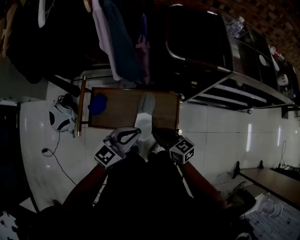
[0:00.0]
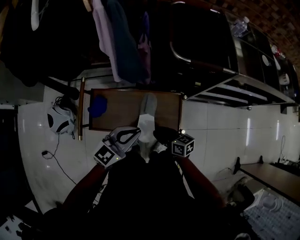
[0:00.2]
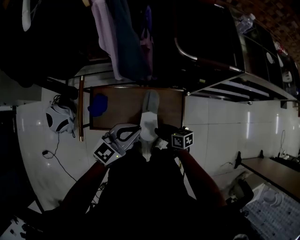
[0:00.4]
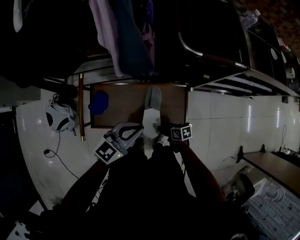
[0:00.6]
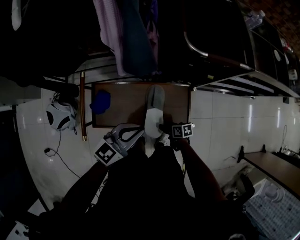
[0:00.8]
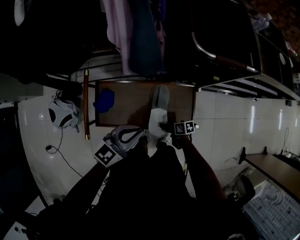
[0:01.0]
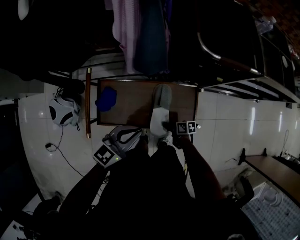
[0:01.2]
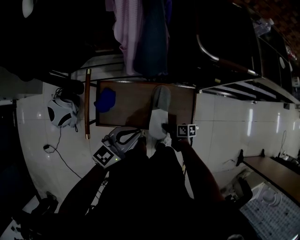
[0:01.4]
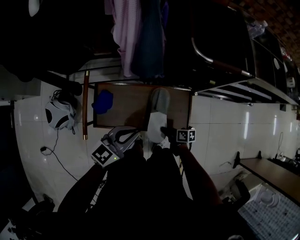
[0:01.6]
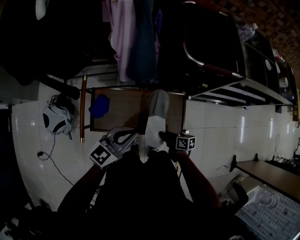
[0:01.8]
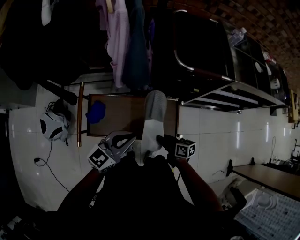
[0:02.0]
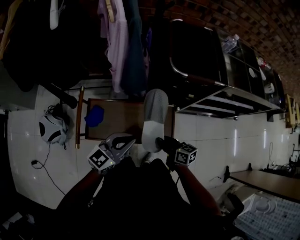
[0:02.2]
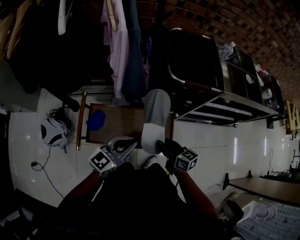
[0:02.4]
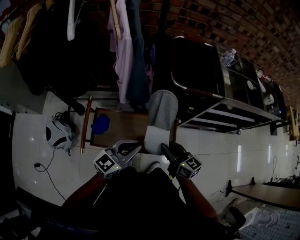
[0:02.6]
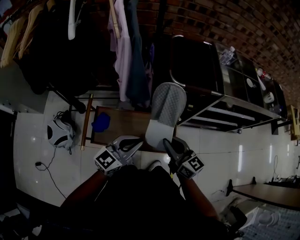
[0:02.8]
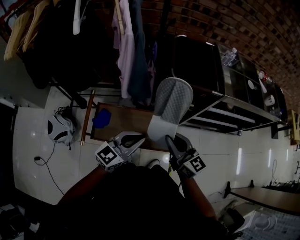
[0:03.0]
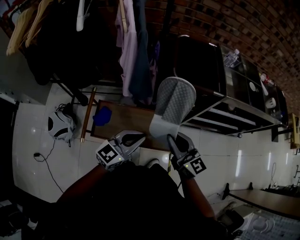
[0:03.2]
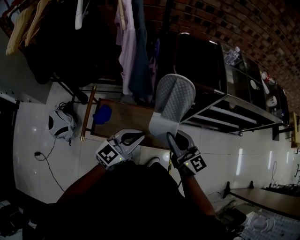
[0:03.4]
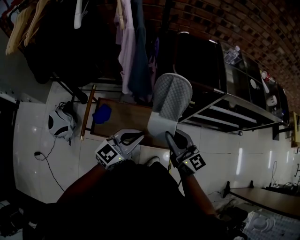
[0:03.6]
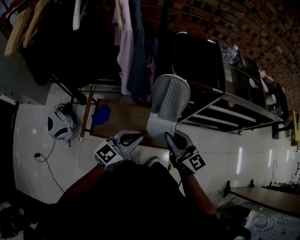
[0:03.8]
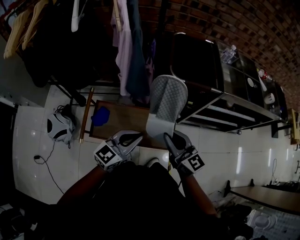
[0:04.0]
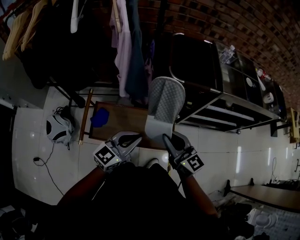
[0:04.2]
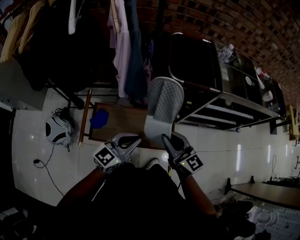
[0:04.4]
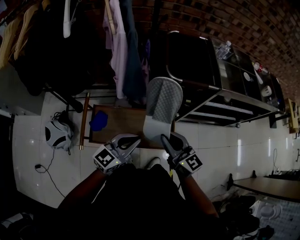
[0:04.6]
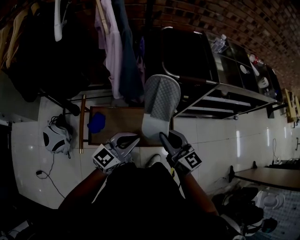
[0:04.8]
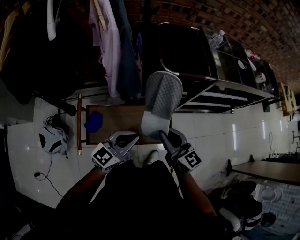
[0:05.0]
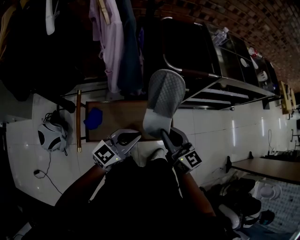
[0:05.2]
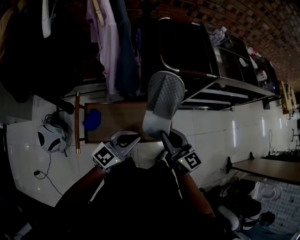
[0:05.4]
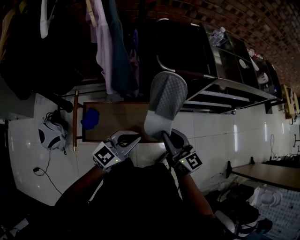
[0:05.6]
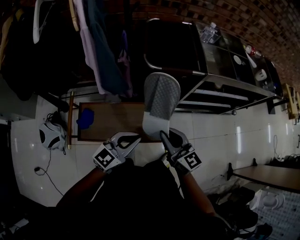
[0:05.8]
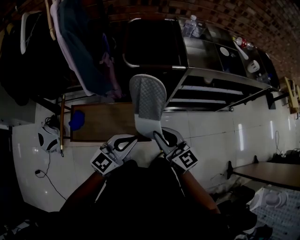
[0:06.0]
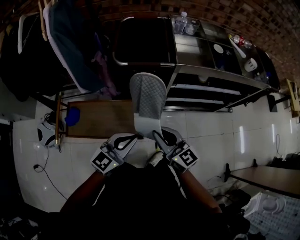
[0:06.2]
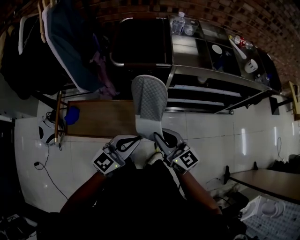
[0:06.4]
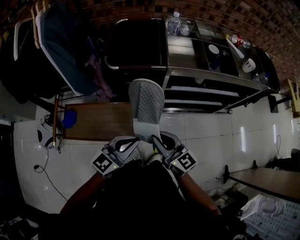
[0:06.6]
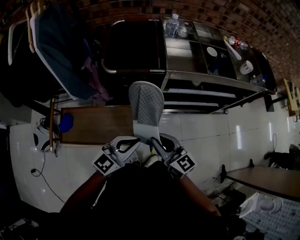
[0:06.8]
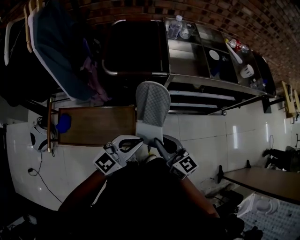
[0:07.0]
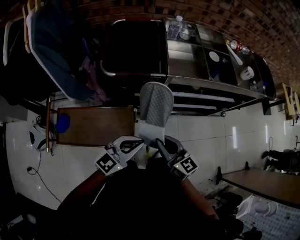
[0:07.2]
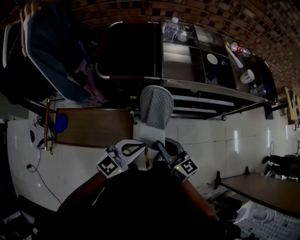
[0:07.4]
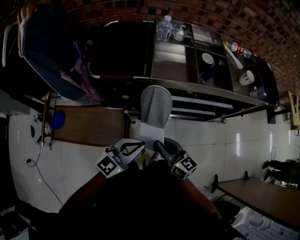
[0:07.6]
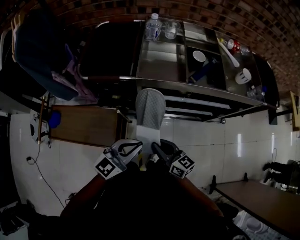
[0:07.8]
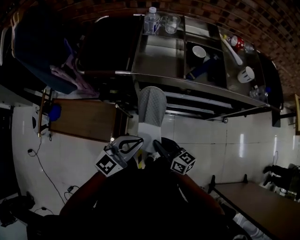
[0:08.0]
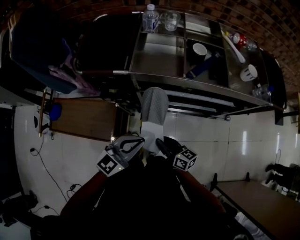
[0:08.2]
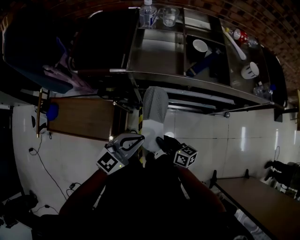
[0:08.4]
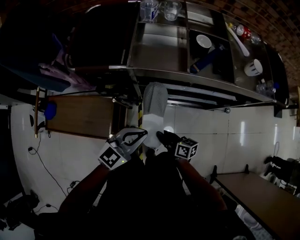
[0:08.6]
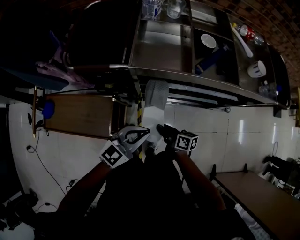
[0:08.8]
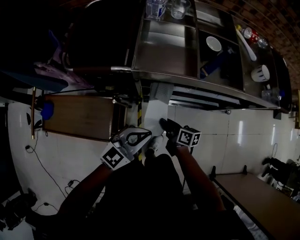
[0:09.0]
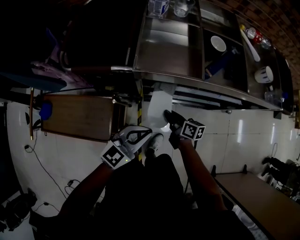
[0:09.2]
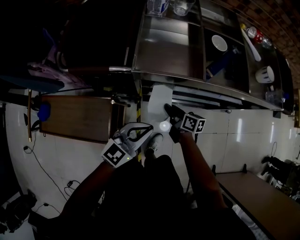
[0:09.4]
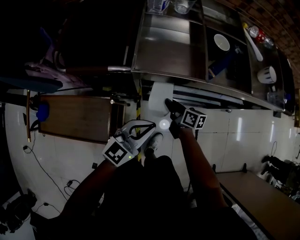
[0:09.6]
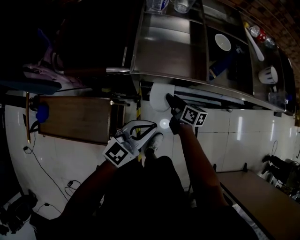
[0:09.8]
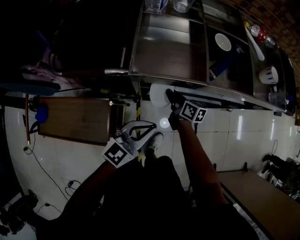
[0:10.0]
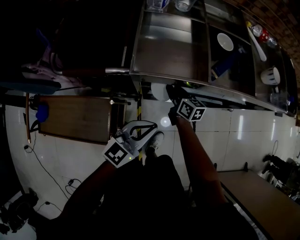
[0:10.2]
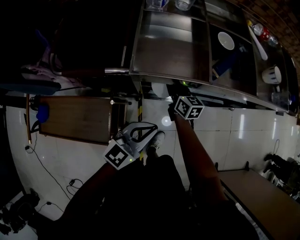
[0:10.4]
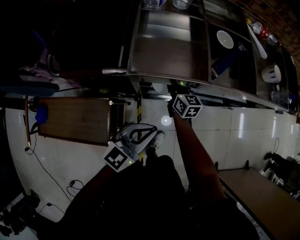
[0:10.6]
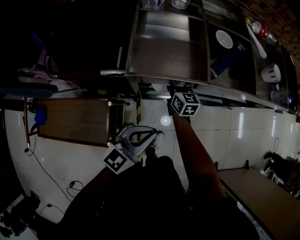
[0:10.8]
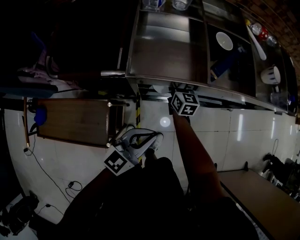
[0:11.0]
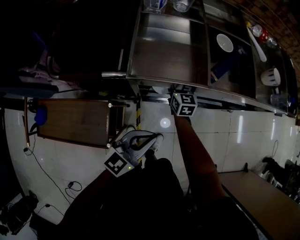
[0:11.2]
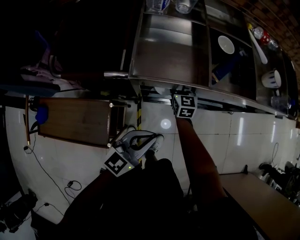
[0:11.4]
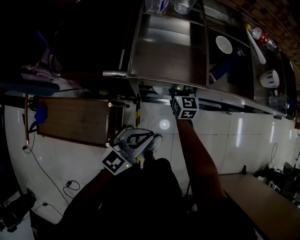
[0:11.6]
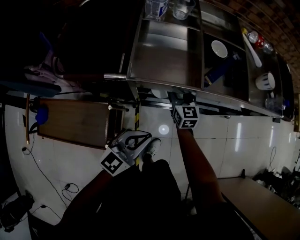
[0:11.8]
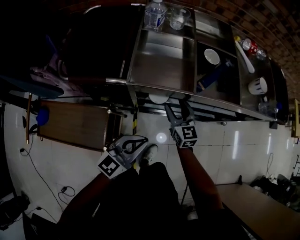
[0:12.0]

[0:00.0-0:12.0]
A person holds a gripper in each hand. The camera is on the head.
0:00.0 to 0:01.6: The right gripper travels downward by some 20 cm, rotates around the line of its fingers by some 40 degrees, clockwise from behind, and opens and closes again, while the left gripper shifts by roughly 10 cm.
0:01.6 to 0:03.0: The right gripper heads upward, covering approximately 40 cm, and tilts its fingers some 30 degrees upward. Meanwhile the left gripper goes some 15 cm upward and to the right.
0:03.0 to 0:04.4: The grippers make only small movements.
0:04.4 to 0:06.0: Both grippers move to the right, roughly 15 cm.
0:06.0 to 0:07.6: The two grippers go approximately 20 cm to the right.
0:07.6 to 0:09.0: The right gripper travels downward, forward and to the right by roughly 25 cm, and changes its angle by roughly 40 degrees; the left gripper travels to the right, downward and forward by about 15 cm.
0:09.0 to 0:10.4: The right gripper goes about 20 cm forward, and swivels roughly 30 degrees; the left gripper moves forward, about 5 cm.
0:10.4 to 0:12.0: The right gripper shifts about 10 cm upward, rotates roughly 30 degrees, and opens.

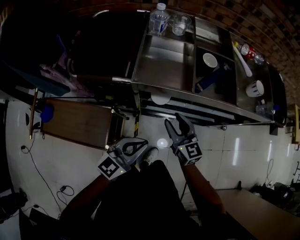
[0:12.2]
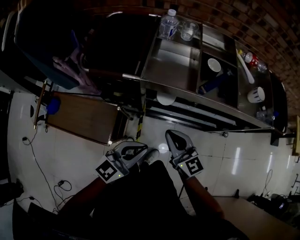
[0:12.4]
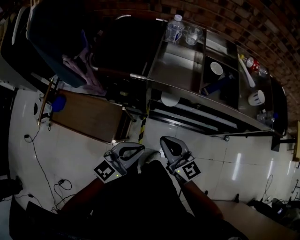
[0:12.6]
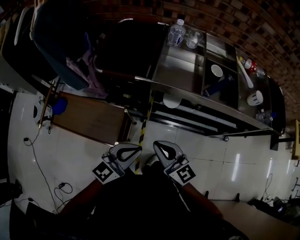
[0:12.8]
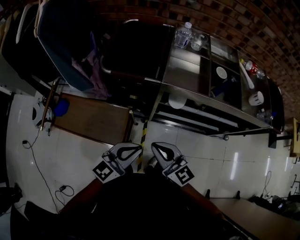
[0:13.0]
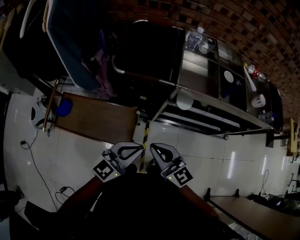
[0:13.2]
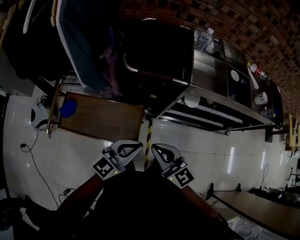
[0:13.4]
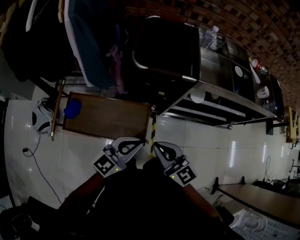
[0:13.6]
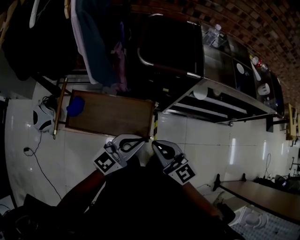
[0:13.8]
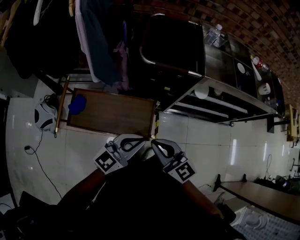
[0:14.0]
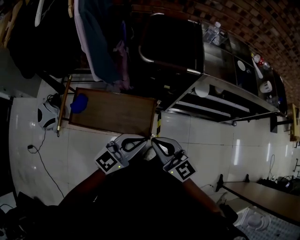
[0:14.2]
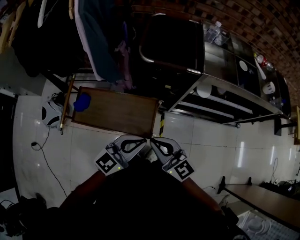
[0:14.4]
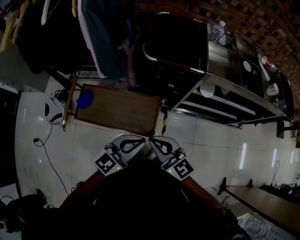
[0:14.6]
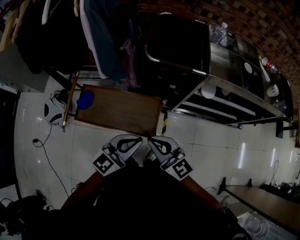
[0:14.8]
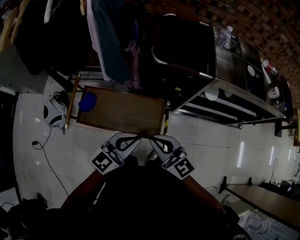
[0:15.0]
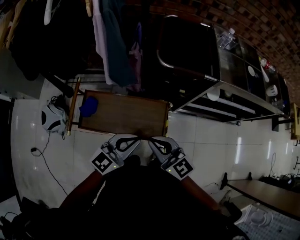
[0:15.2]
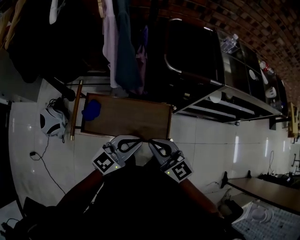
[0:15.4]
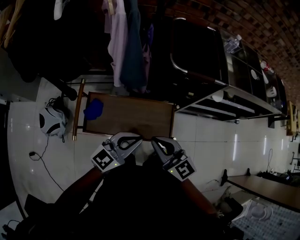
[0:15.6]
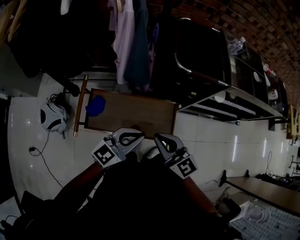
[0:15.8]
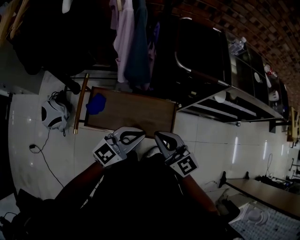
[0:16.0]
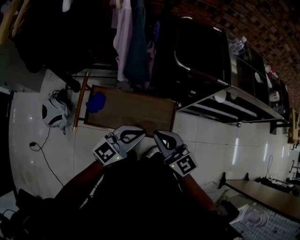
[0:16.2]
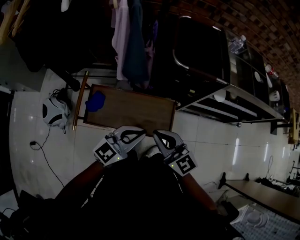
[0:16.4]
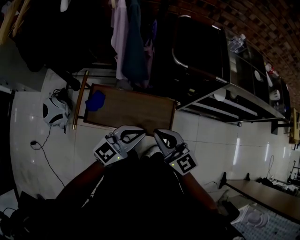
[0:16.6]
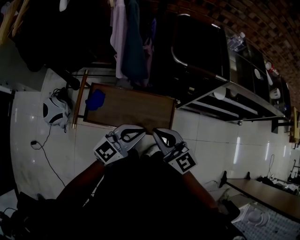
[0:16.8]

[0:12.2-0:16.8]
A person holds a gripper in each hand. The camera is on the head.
0:12.2 to 0:13.8: The right gripper travels to the left and backward by about 40 cm, and closes its fingers; the left gripper heads to the left, covering some 30 cm.
0:13.8 to 0:15.2: The two grippers go some 10 cm to the left.

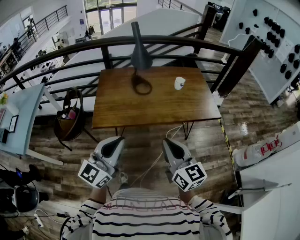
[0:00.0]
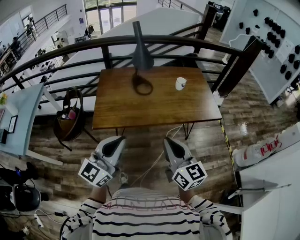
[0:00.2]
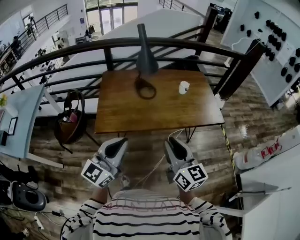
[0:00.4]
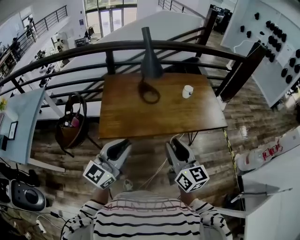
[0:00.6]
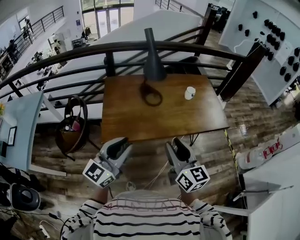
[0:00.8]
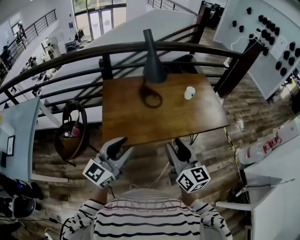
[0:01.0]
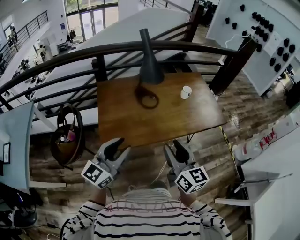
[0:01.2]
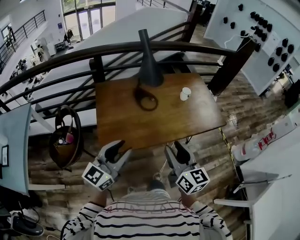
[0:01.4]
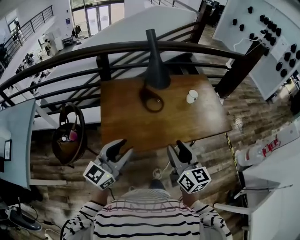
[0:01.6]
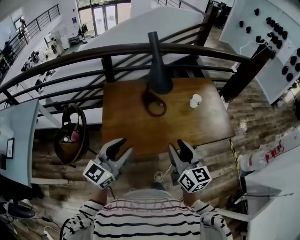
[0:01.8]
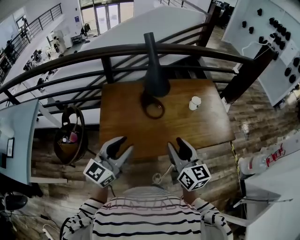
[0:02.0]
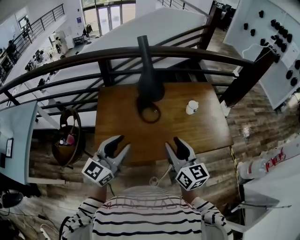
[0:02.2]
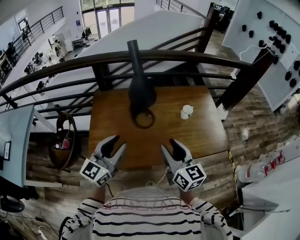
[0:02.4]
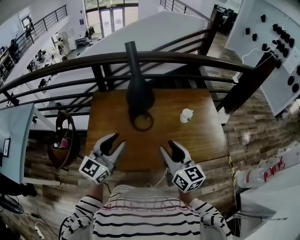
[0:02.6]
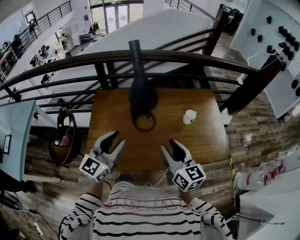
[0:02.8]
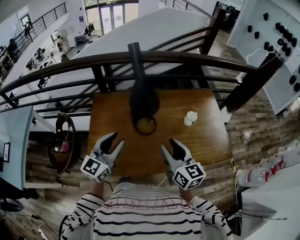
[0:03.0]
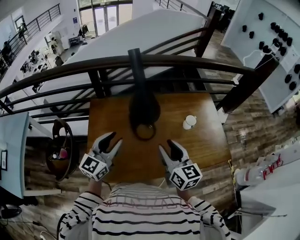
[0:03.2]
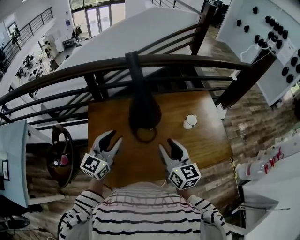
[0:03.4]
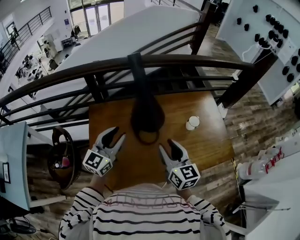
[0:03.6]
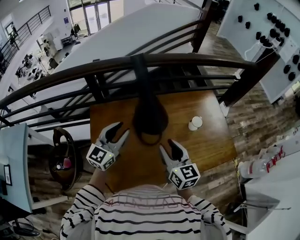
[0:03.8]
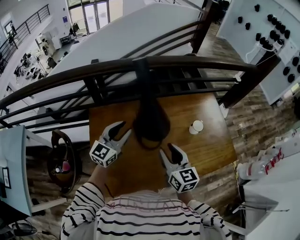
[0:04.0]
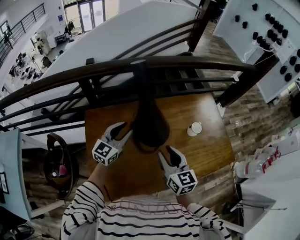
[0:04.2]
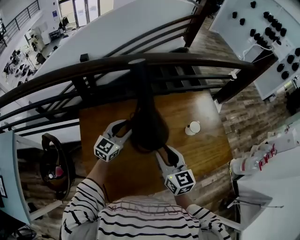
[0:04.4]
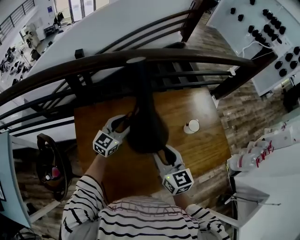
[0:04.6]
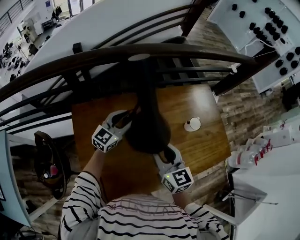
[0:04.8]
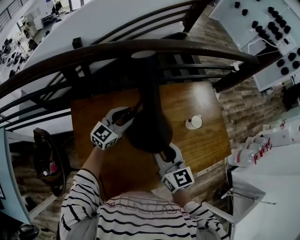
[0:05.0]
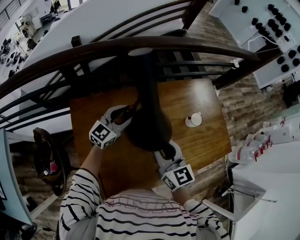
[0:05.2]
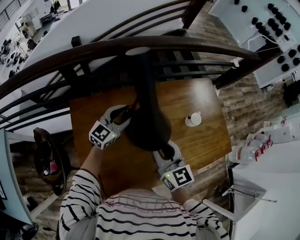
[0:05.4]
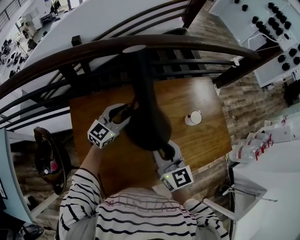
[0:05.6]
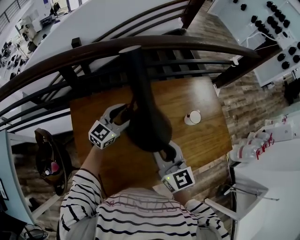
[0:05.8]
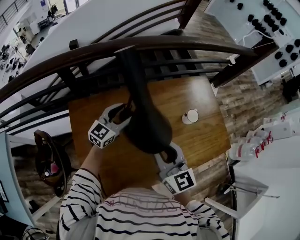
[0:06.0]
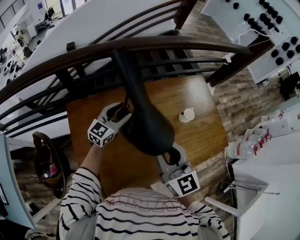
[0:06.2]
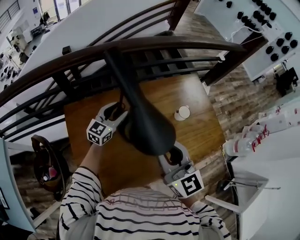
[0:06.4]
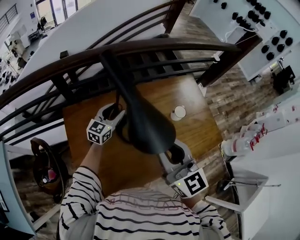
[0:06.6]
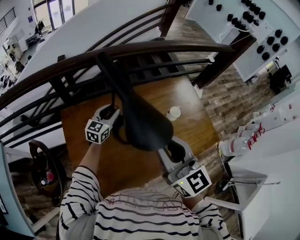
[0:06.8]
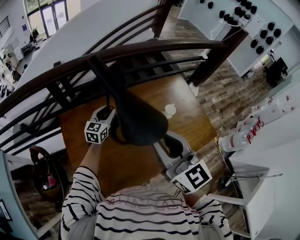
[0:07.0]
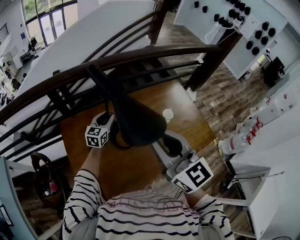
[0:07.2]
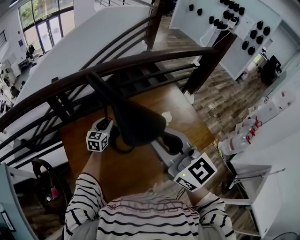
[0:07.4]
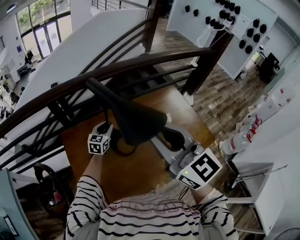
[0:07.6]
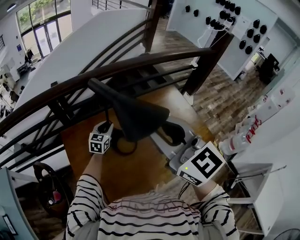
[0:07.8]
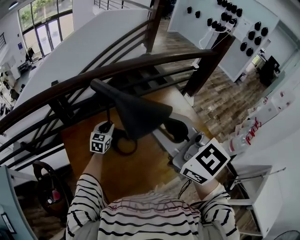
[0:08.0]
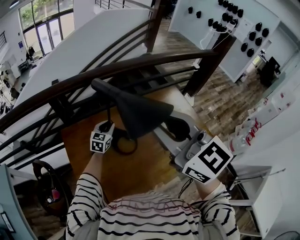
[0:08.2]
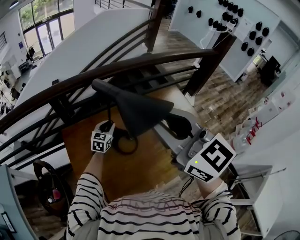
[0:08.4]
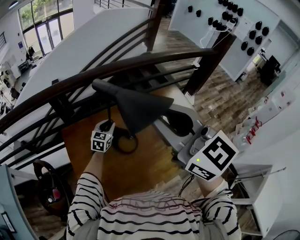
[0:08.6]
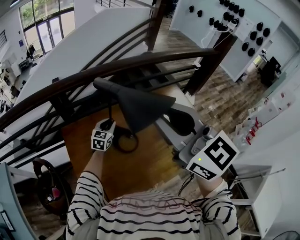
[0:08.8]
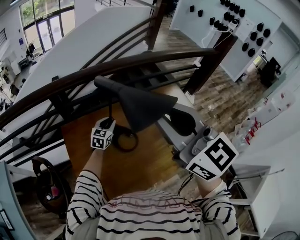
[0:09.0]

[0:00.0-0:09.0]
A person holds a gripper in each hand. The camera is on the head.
0:00.0 to 0:01.6: The two grippers go roughly 30 cm forward and to the left. The left gripper opens. Meanwhile the right gripper opens up.
0:01.6 to 0:03.0: The grippers both shift forward by approximately 25 cm.
0:03.0 to 0:04.4: The right gripper is displaced forward and to the left by about 20 cm; the left gripper travels forward by about 30 cm.
0:04.4 to 0:06.0: The left gripper heads forward, covering roughly 5 cm, and opens.
0:06.0 to 0:07.6: The left gripper closes. Meanwhile the right gripper heads upward and backward, covering some 25 cm.
0:07.6 to 0:09.0: The right gripper travels upward by about 5 cm.
